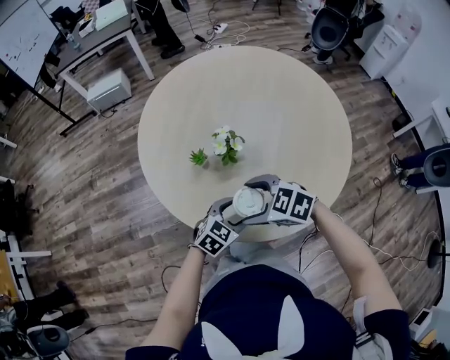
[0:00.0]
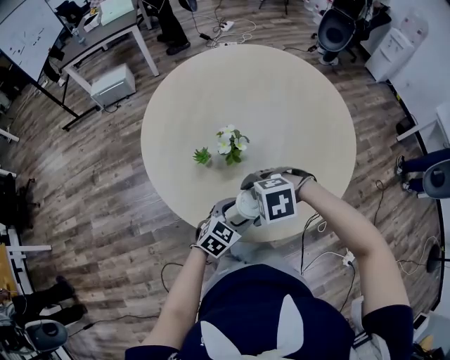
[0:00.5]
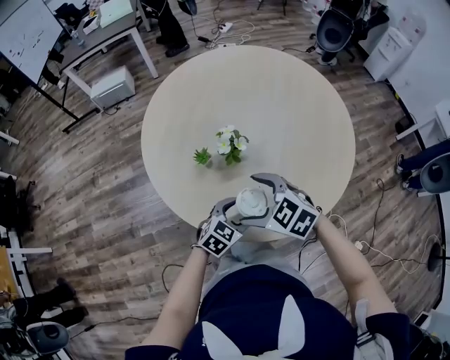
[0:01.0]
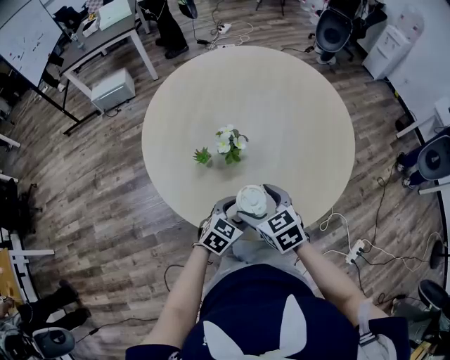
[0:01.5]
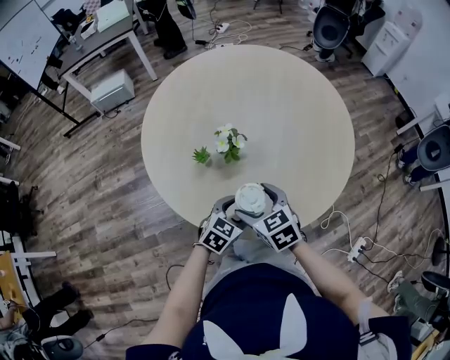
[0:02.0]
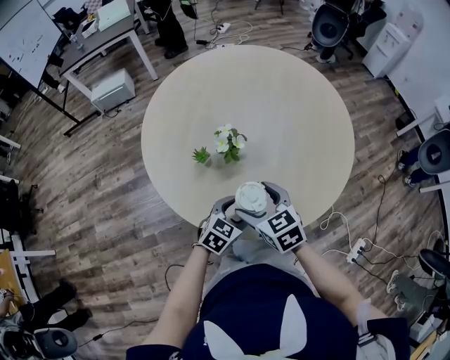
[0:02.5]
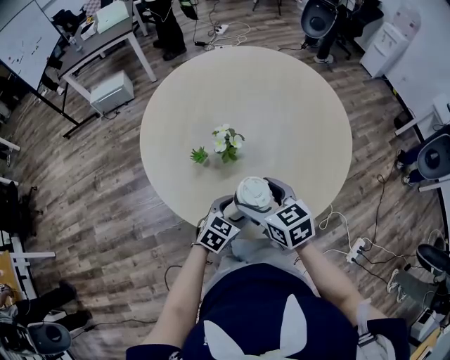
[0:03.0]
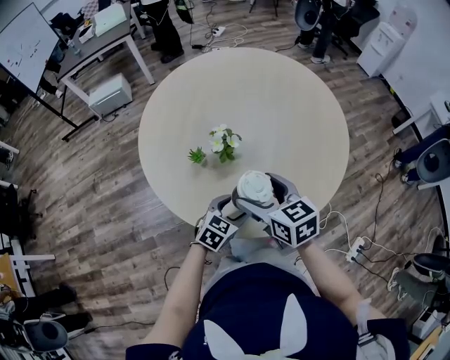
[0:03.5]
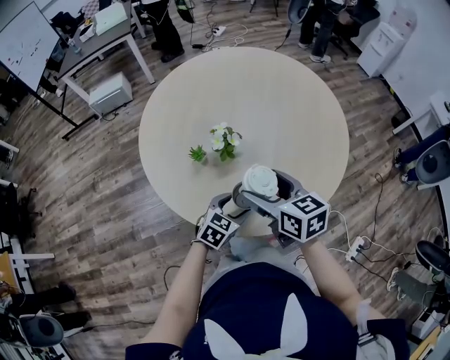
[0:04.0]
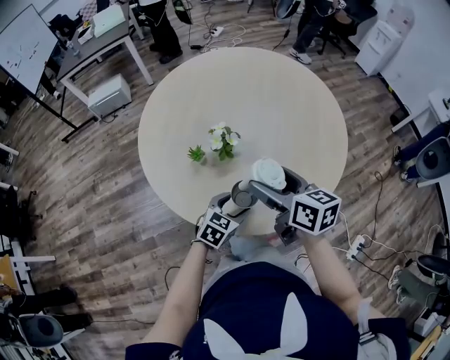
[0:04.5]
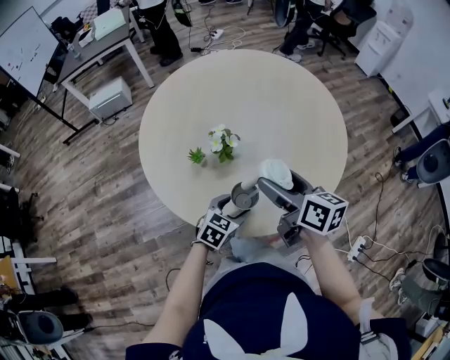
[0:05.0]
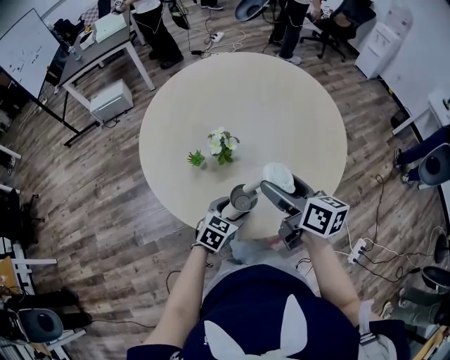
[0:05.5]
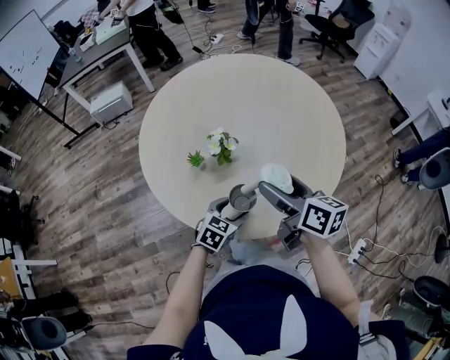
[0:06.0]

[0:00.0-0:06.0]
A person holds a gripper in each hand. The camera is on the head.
0:00.0 to 0:02.0: The right gripper changes its angle by roughly 40 degrees.
0:02.0 to 0:04.0: The right gripper goes roughly 10 cm upward, and swivels approximately 20 degrees.
0:04.0 to 0:06.0: The right gripper goes approximately 5 cm to the right, and changes its angle by approximately 20 degrees.

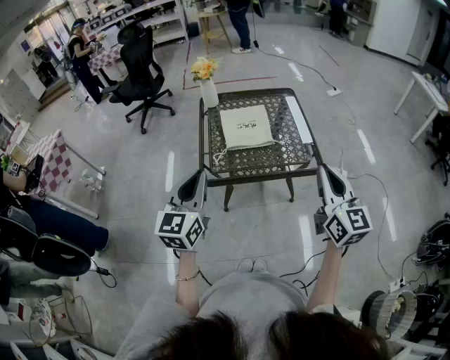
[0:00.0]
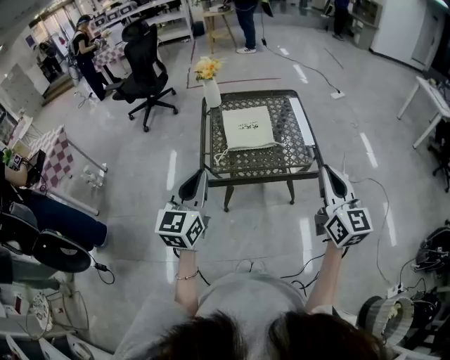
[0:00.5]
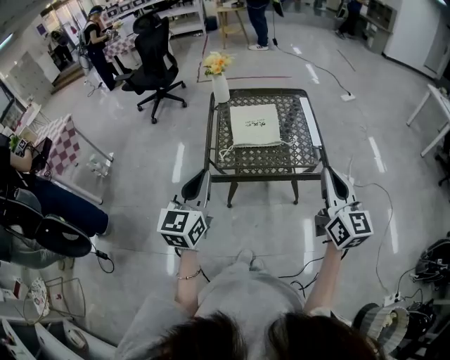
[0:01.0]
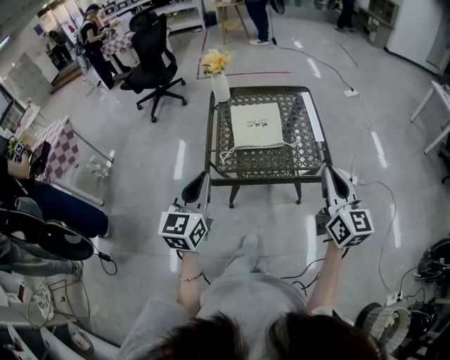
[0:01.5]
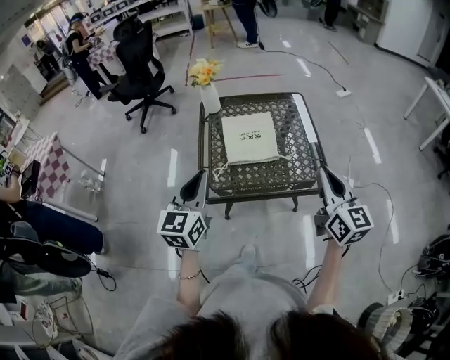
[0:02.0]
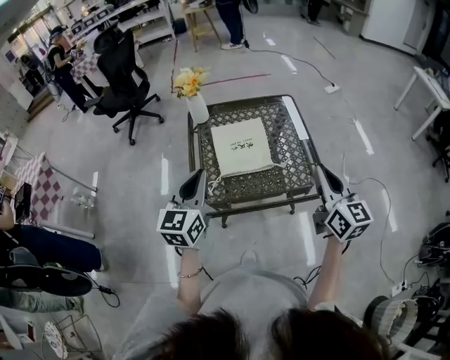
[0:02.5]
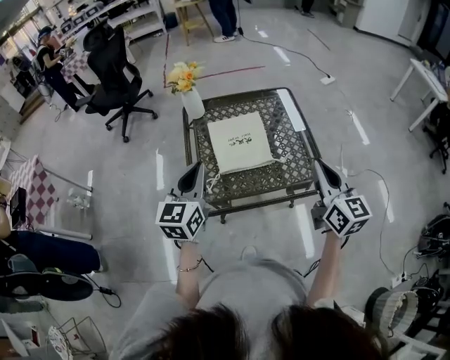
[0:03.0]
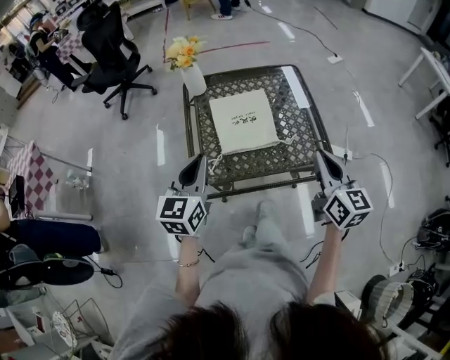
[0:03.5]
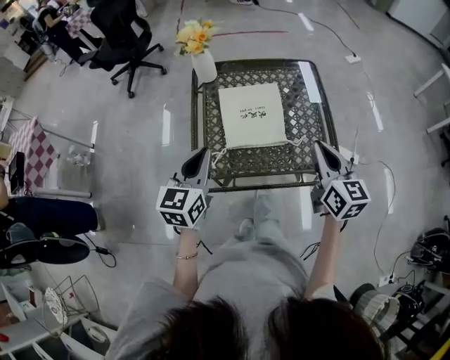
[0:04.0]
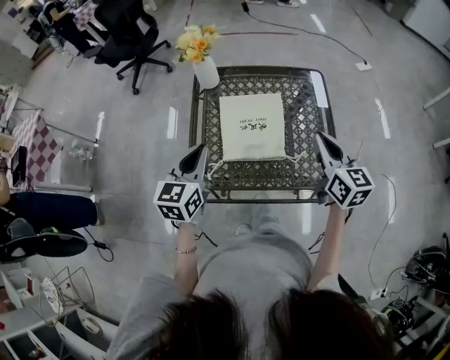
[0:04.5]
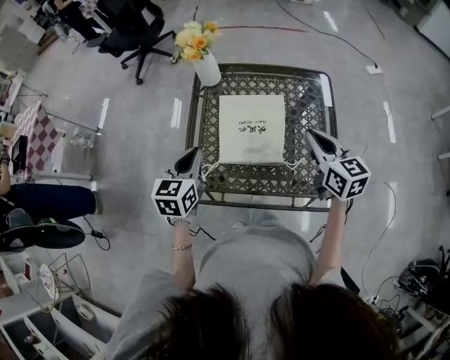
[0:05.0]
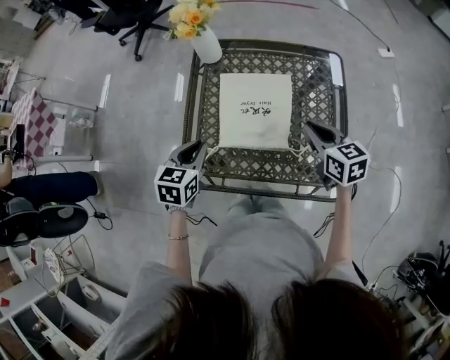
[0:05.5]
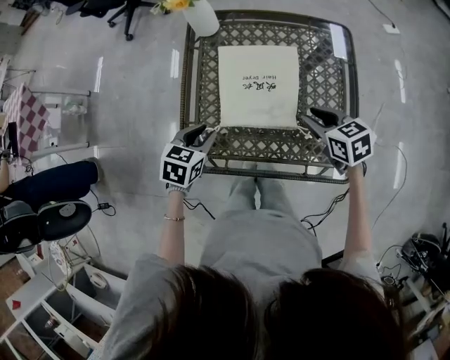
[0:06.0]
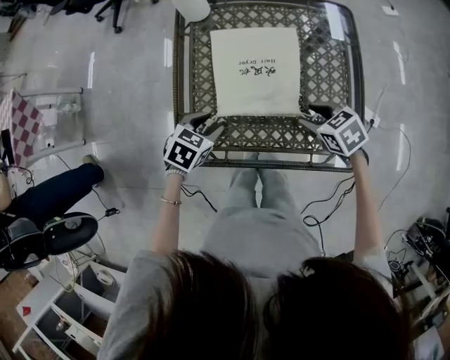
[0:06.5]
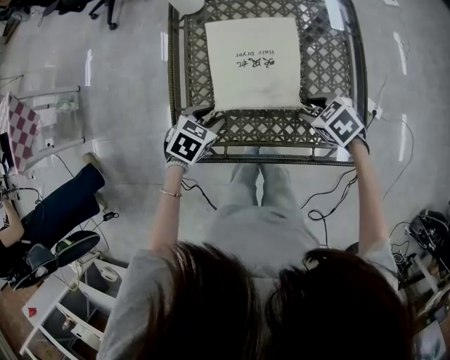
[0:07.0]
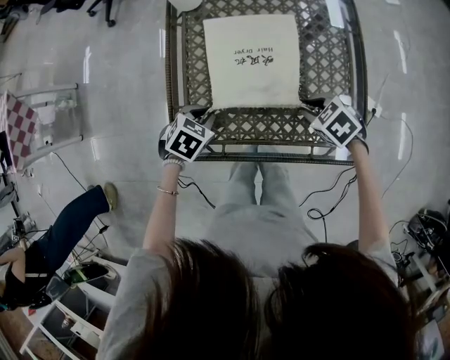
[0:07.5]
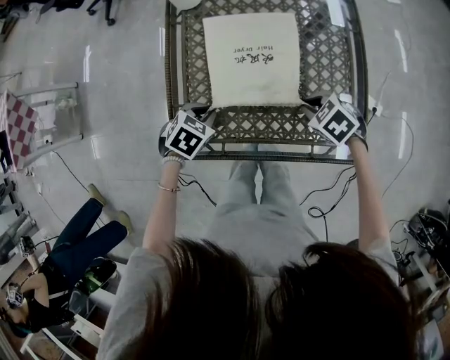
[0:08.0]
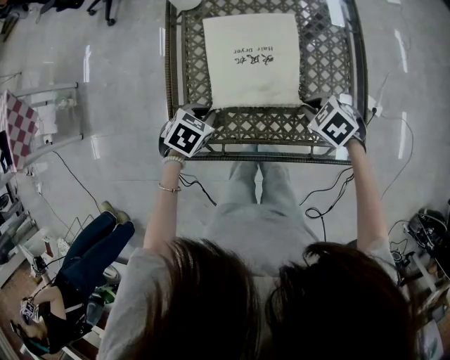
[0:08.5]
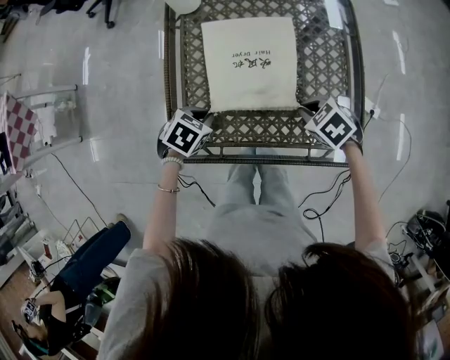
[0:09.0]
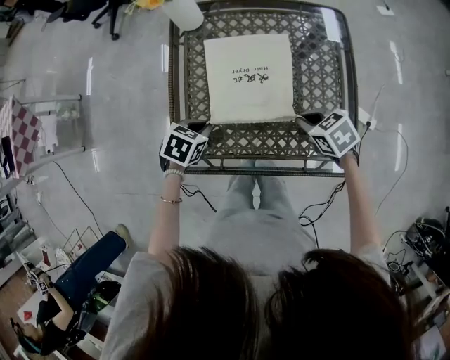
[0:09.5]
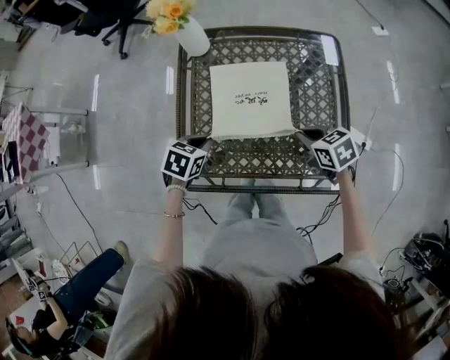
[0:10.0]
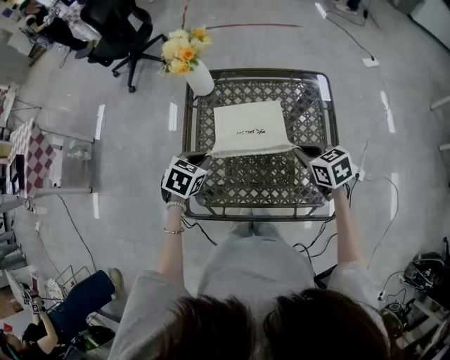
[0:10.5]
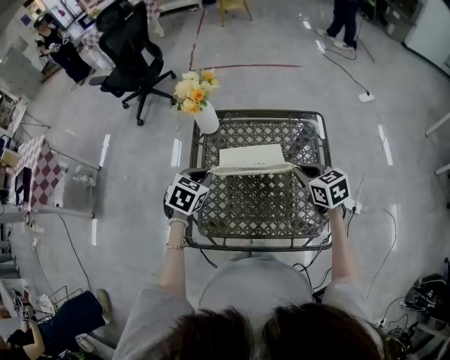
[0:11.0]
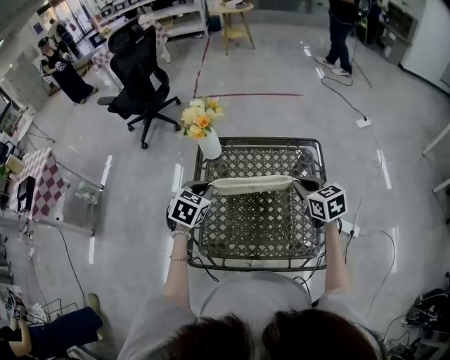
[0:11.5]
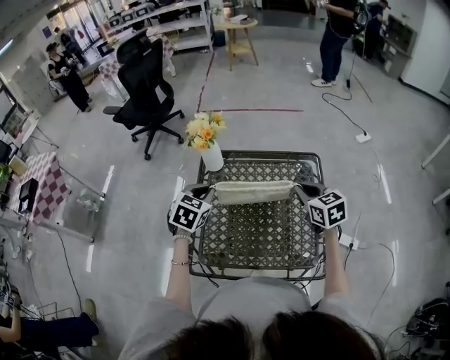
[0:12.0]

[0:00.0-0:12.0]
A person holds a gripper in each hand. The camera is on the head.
0:00.0 to 0:02.0: Both grippers travel together forward, some 15 cm.
0:02.0 to 0:04.0: The grippers both shift forward and downward by approximately 15 cm.
0:04.0 to 0:06.0: The right gripper travels downward and forward by some 20 cm, angles its fingers downward, by approximately 30 degrees, and opens its fingers; the left gripper moves downward, some 20 cm, tilts its fingers approximately 30 degrees downward, and opens.
0:06.0 to 0:08.0: Both grippers travel together downward, approximately 10 cm. The left gripper turns by about 30 degrees. Meanwhile the right gripper turns by roughly 30 degrees.
0:08.0 to 0:10.0: Both grippers move upward, about 5 cm. The right gripper changes its angle by some 30 degrees.
0:10.0 to 0:12.0: The grippers both shift upward and forward by roughly 20 cm. The left gripper rotates some 30 degrees. The right gripper rotates roughly 30 degrees.

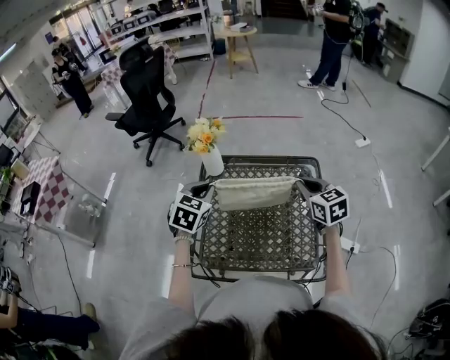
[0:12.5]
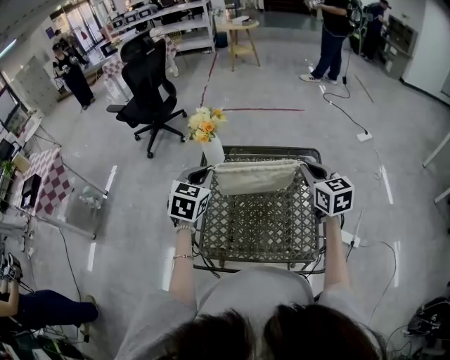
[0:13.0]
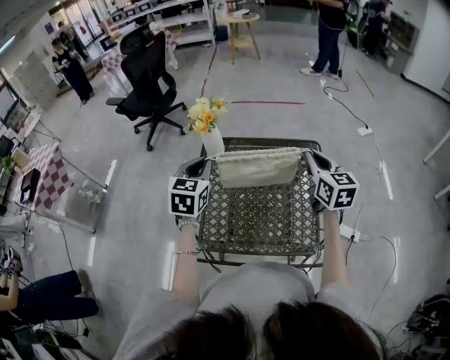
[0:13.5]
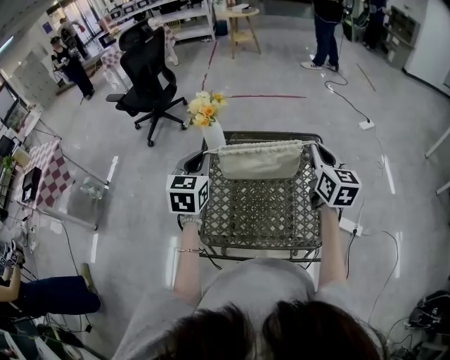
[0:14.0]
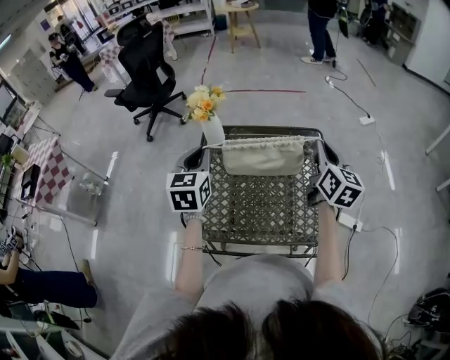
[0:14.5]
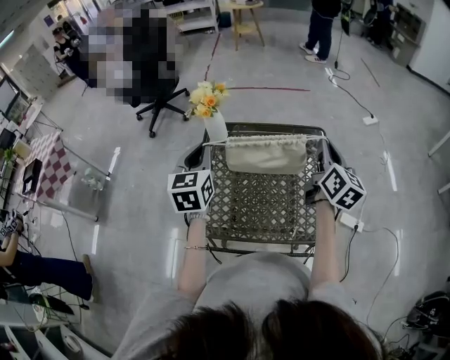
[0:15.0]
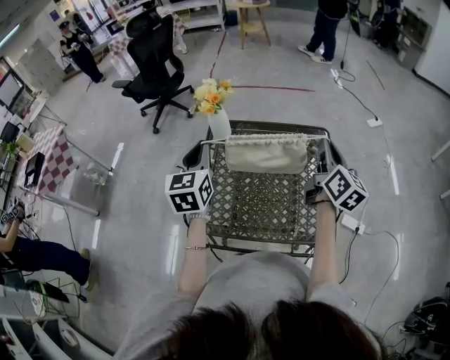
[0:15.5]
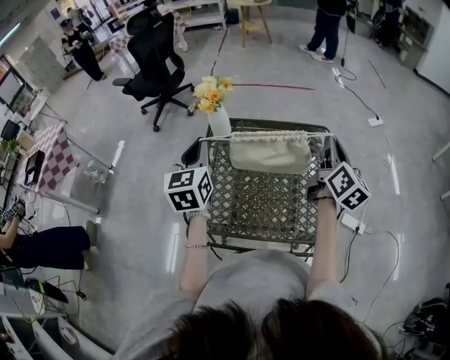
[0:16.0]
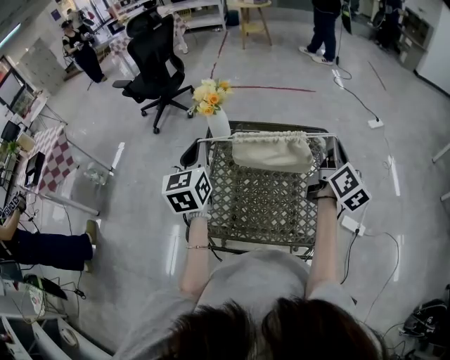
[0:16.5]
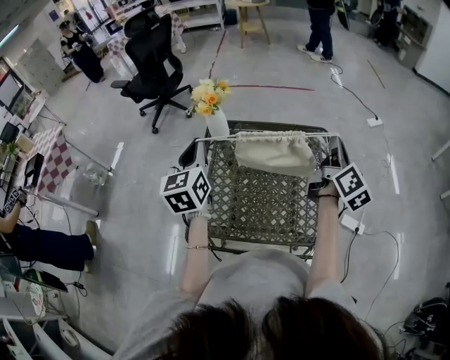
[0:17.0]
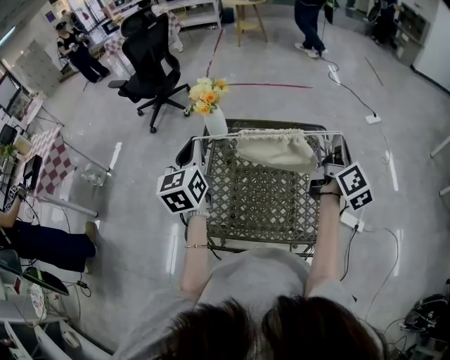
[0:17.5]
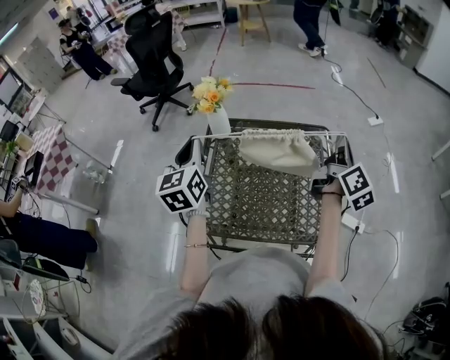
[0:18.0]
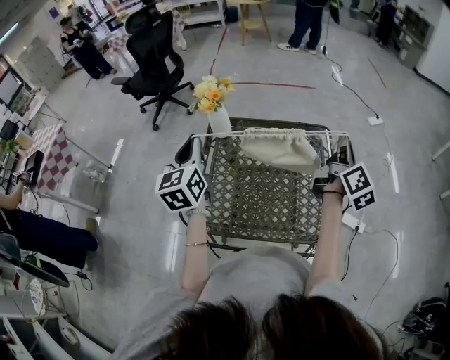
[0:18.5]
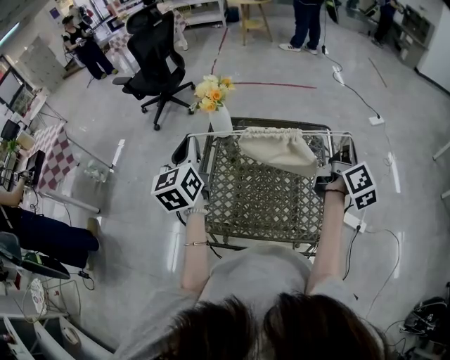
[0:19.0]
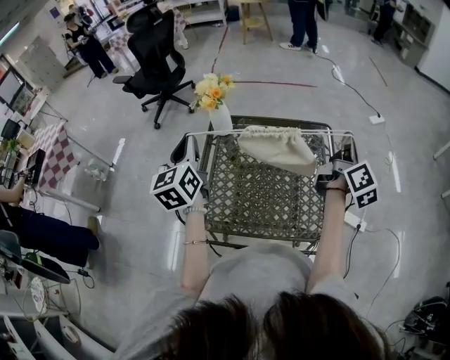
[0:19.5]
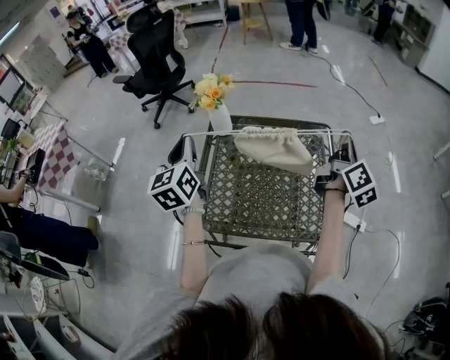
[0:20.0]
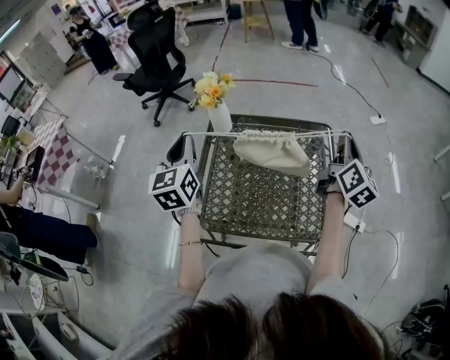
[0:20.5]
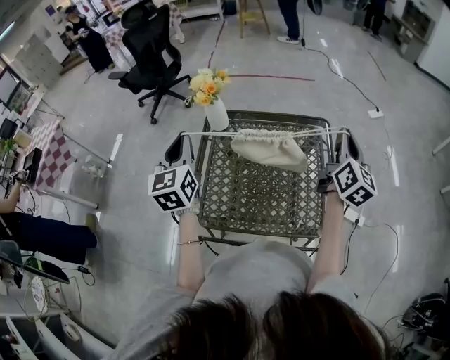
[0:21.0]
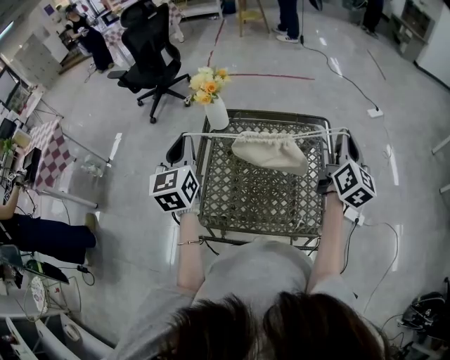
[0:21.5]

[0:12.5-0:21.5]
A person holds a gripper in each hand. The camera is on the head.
0:12.5 to 0:14.5: The two grippers go some 5 cm upward. The right gripper rotates about 40 degrees. Meanwhile the left gripper turns by about 30 degrees.
0:14.5 to 0:17.0: The right gripper turns by some 30 degrees.
0:17.0 to 0:19.5: There are only small adjustments of the grippers.
0:19.5 to 0:21.5: The right gripper changes its angle by roughly 30 degrees.
